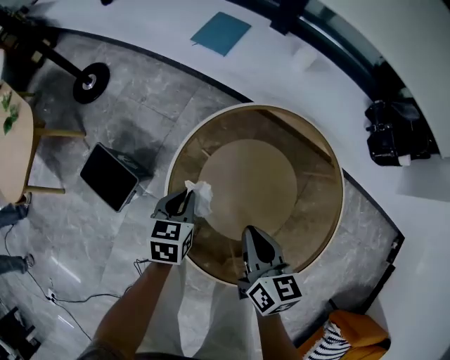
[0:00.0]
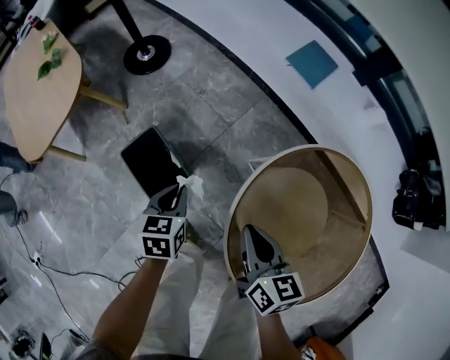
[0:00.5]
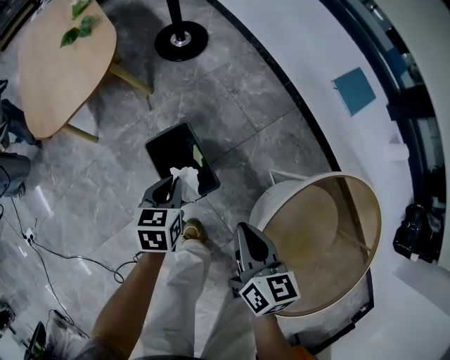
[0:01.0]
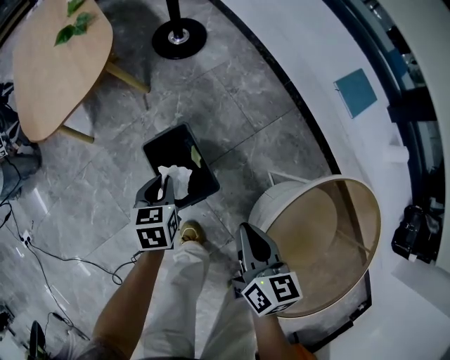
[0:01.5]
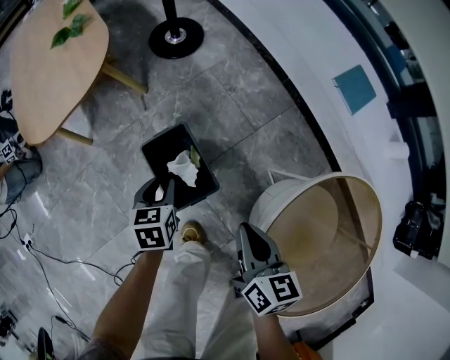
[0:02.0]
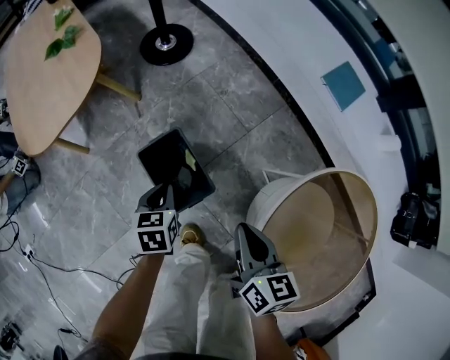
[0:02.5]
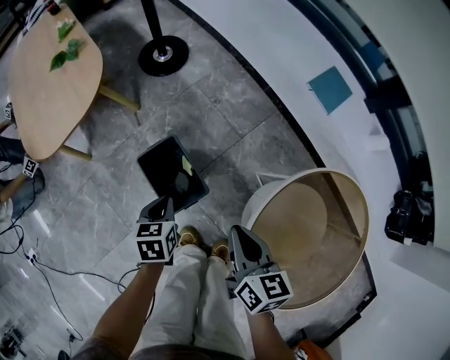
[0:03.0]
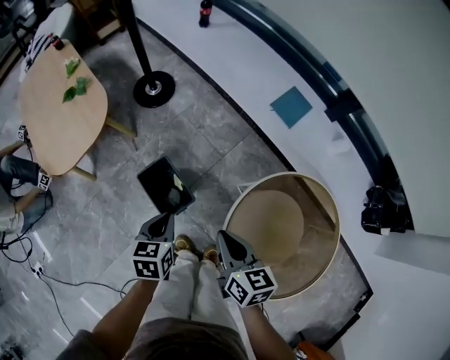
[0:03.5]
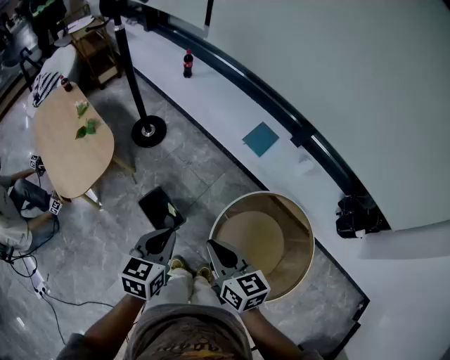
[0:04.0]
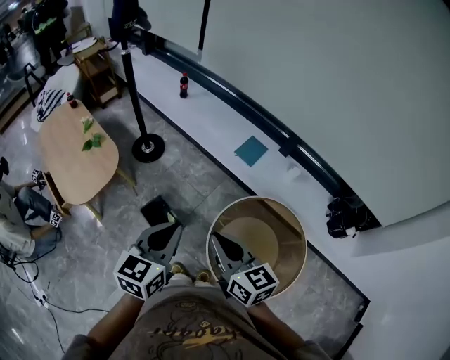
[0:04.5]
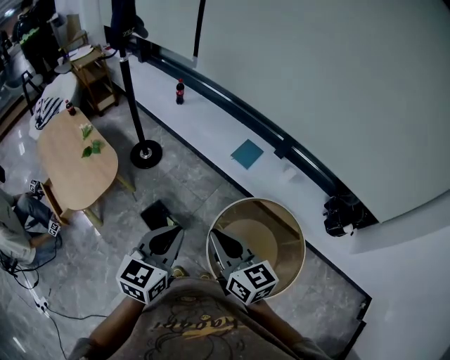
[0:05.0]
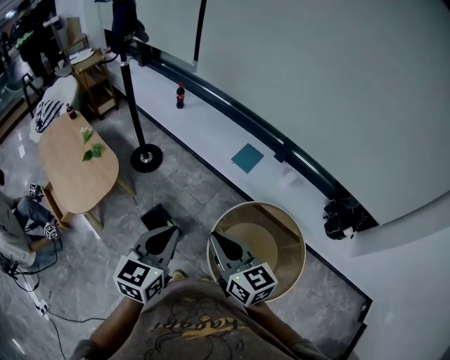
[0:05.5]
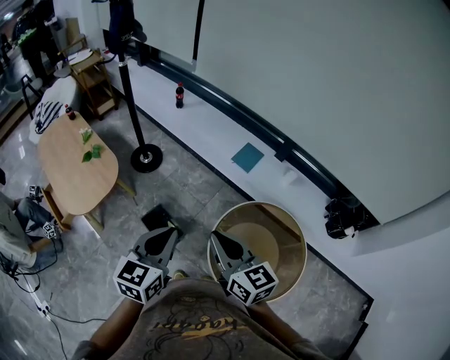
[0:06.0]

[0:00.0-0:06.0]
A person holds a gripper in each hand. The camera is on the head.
0:00.0 to 0:02.0: The left gripper shifts by approximately 40 cm, and rotates roughly 40 degrees. The right gripper shifts by some 35 cm, and turns by roughly 20 degrees.
0:02.0 to 0:04.0: The grippers both shift upward by roughly 40 cm. The left gripper turns by approximately 30 degrees, and closes its fingers.
0:04.0 to 0:06.0: Both grippers travel together upward, some 15 cm.

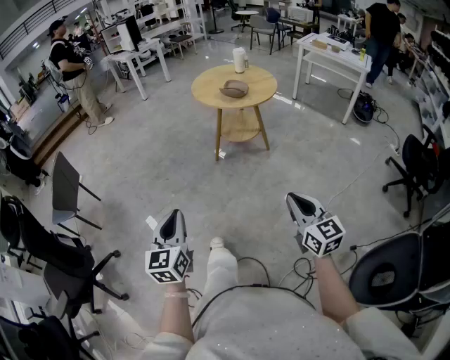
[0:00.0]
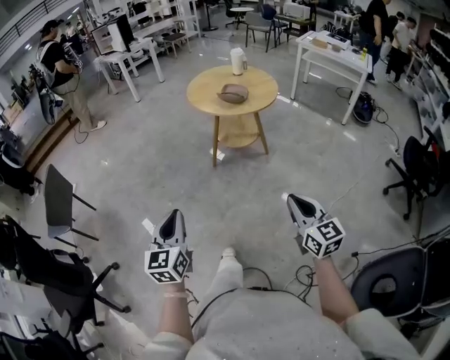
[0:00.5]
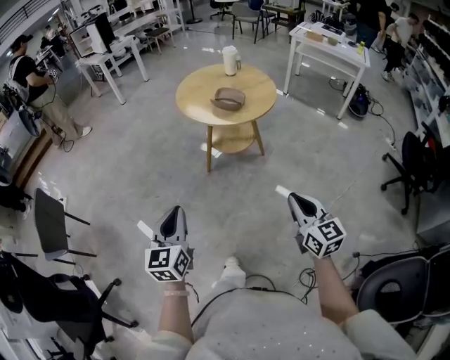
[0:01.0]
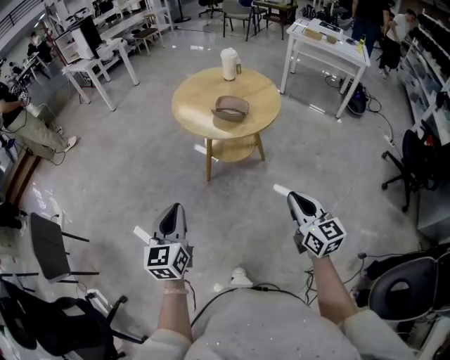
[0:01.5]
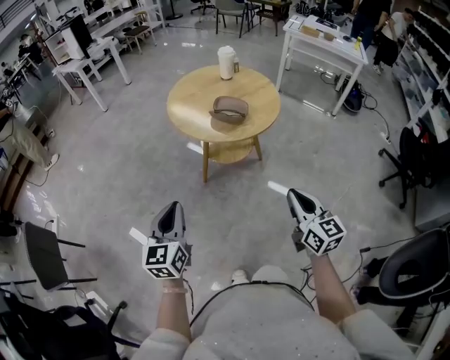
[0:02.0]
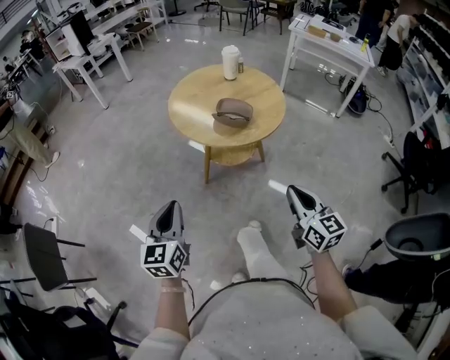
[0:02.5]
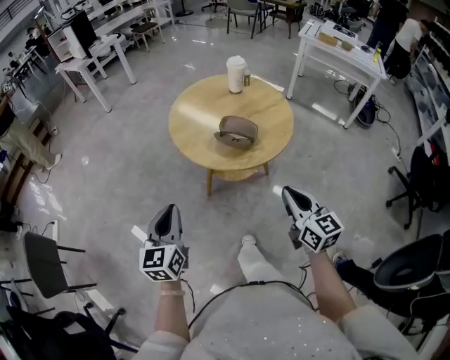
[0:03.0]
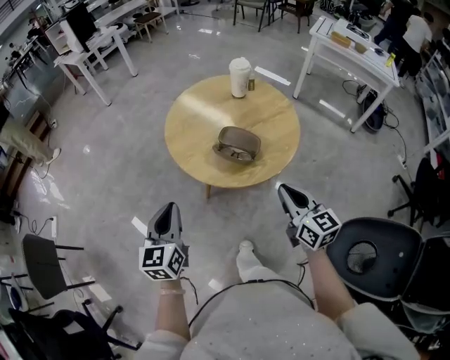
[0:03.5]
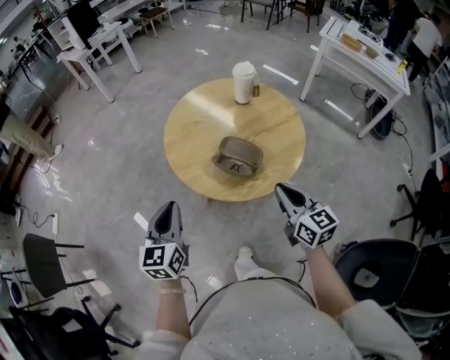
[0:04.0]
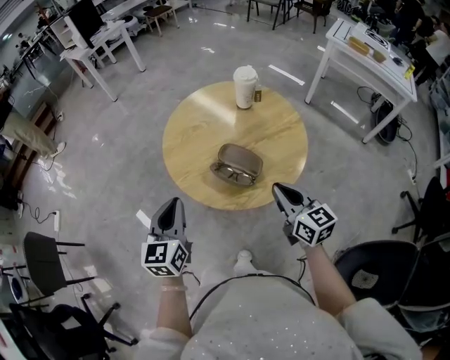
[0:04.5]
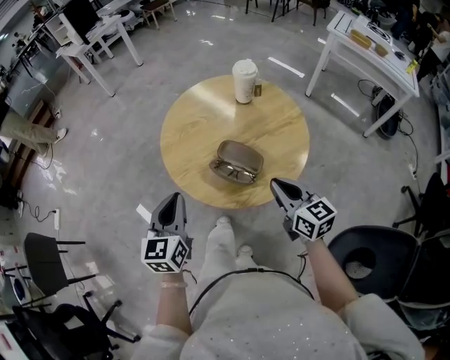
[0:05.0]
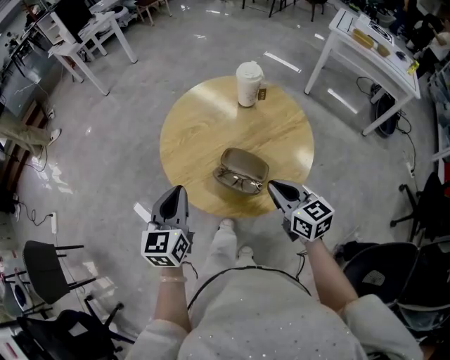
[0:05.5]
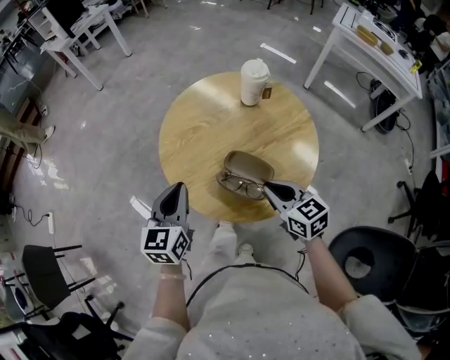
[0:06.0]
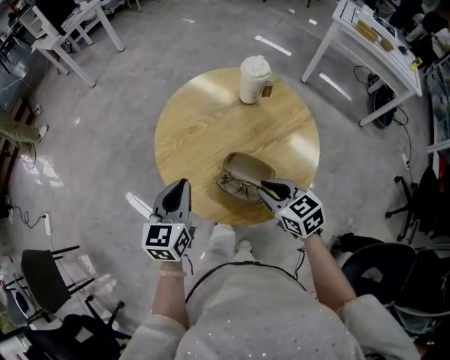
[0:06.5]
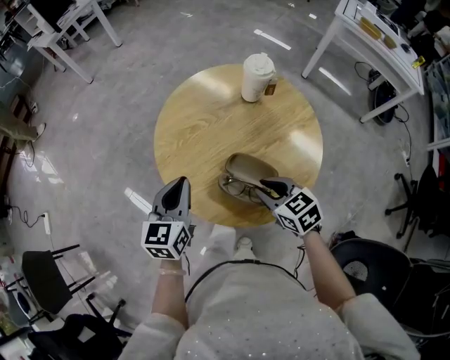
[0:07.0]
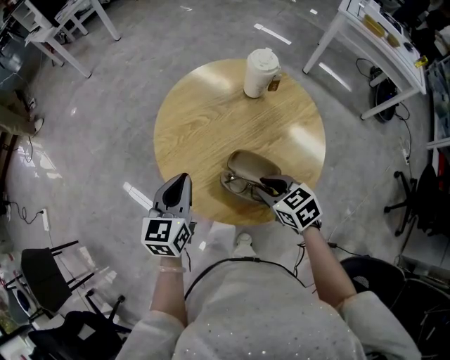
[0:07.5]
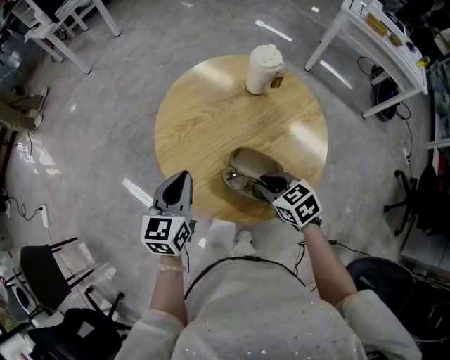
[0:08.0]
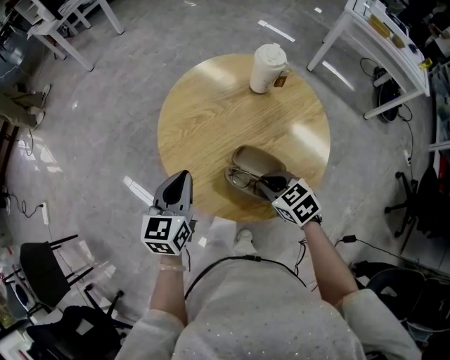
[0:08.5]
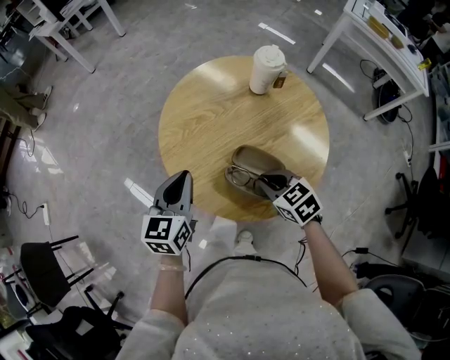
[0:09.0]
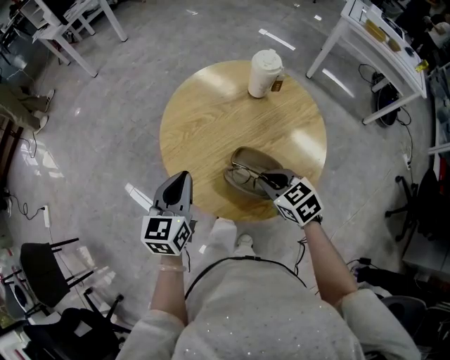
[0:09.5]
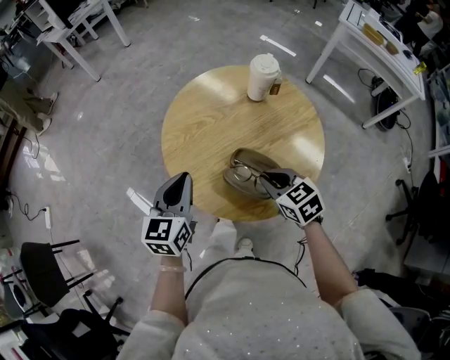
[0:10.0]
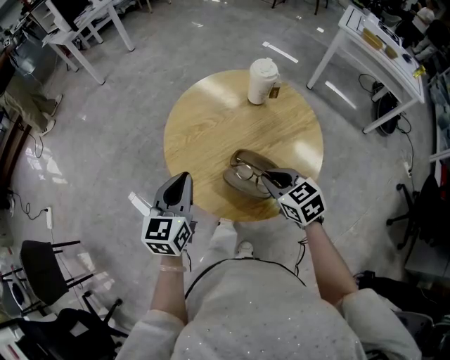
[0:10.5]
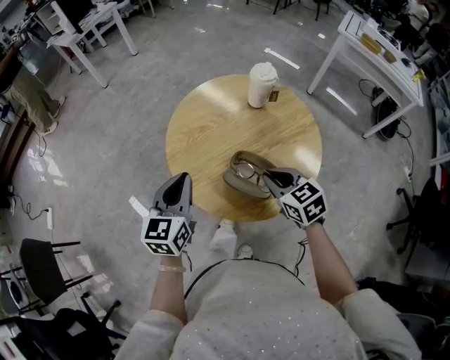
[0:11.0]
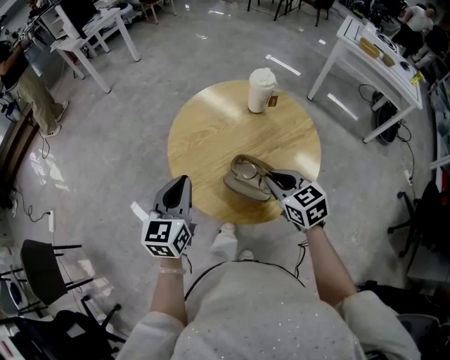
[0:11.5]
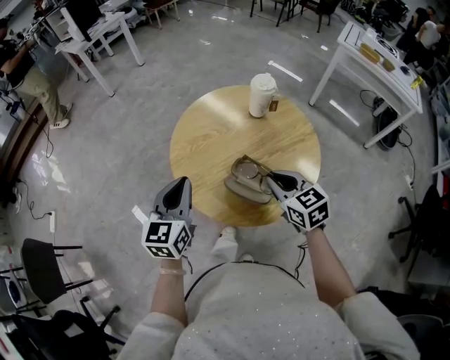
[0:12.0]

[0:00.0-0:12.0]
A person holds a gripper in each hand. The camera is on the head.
0:00.0 to 0:02.0: Both grippers move forward, some 35 cm.
0:02.0 to 0:04.0: Both grippers travel together forward, roughly 30 cm.
0:04.0 to 0:06.0: The right gripper is displaced forward and downward by some 10 cm. Meanwhile the left gripper shifts approximately 15 cm forward.
0:06.0 to 0:08.0: The right gripper heads downward, covering approximately 5 cm, and turns by roughly 20 degrees. Meanwhile the left gripper moves about 5 cm.
0:08.0 to 0:10.0: The grippers stay close to where they were, moving slightly.
0:10.0 to 0:12.0: The right gripper heads upward, covering roughly 5 cm.

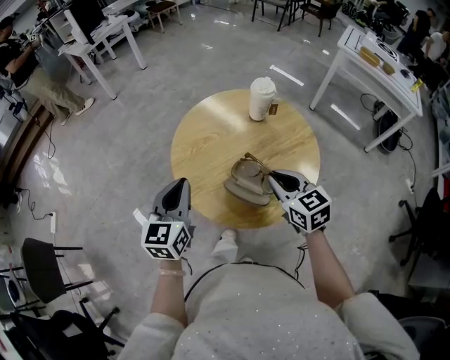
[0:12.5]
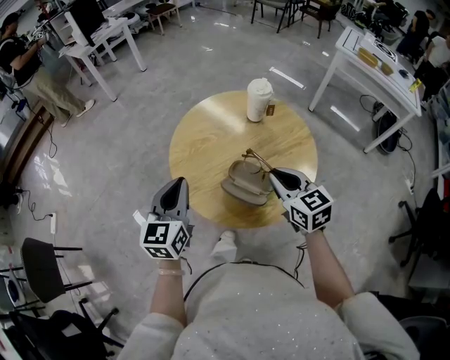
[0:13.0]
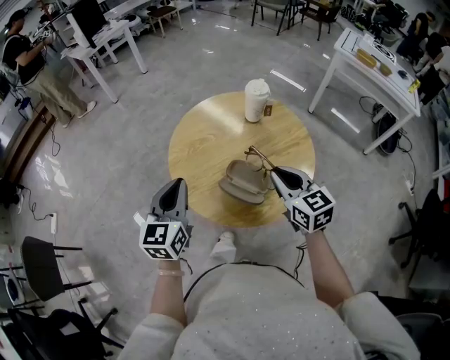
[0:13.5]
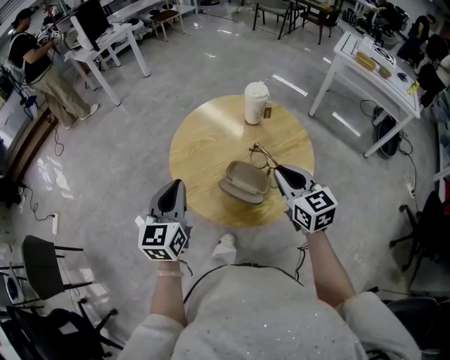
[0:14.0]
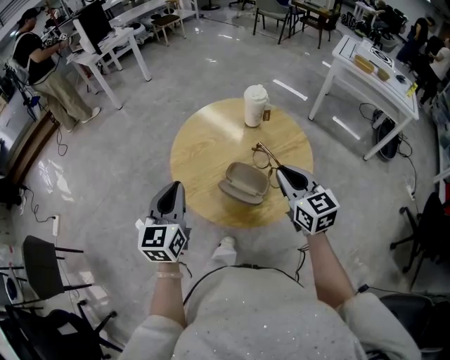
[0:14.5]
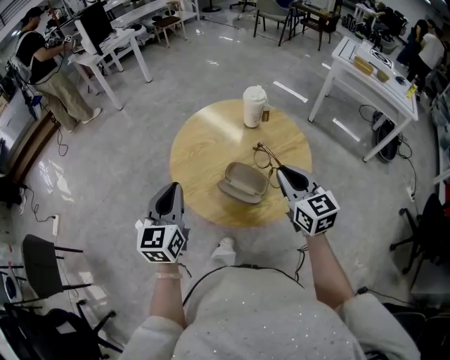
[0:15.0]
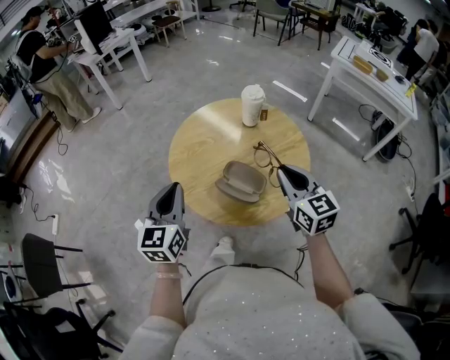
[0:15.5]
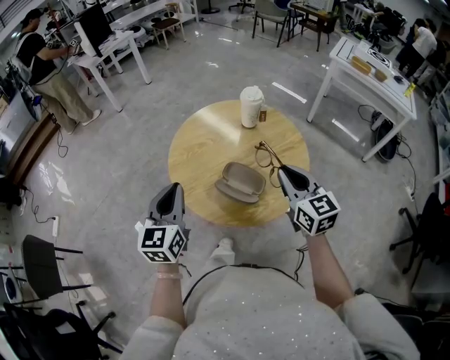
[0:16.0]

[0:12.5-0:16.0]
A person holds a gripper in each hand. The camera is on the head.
0:12.5 to 0:14.5: The right gripper shifts some 5 cm upward.
0:14.5 to 0:16.0: There are only small adjustments of the grippers.

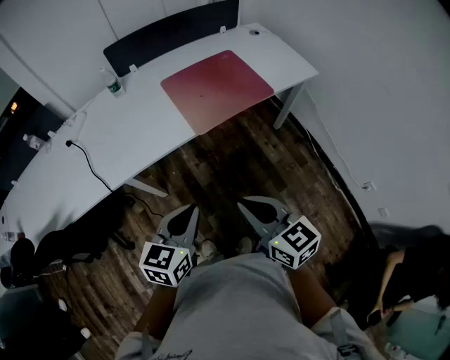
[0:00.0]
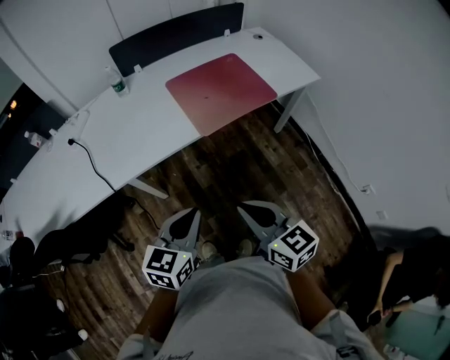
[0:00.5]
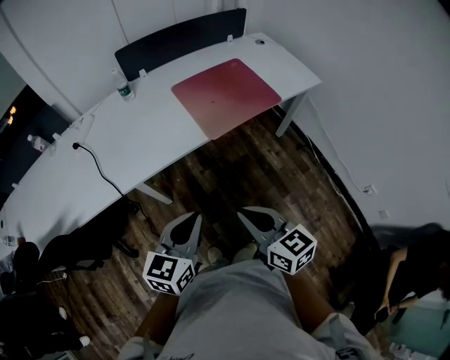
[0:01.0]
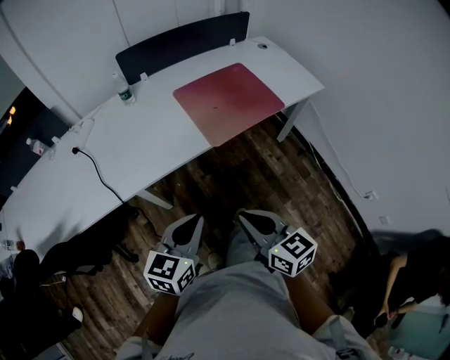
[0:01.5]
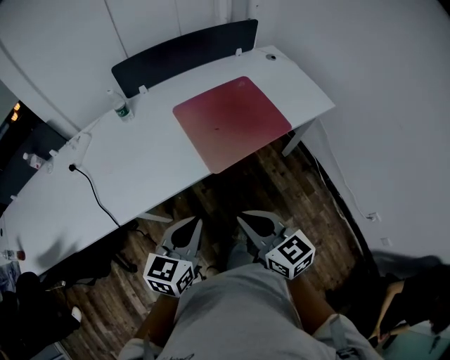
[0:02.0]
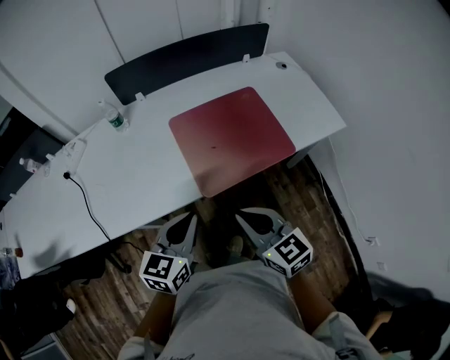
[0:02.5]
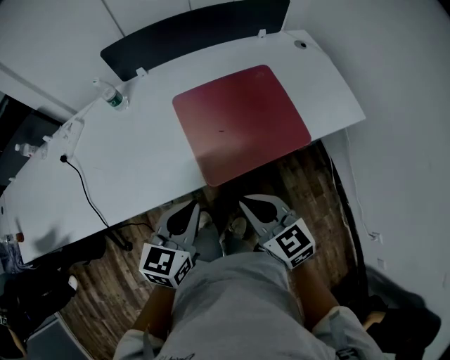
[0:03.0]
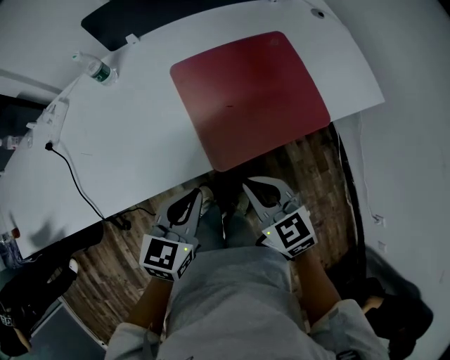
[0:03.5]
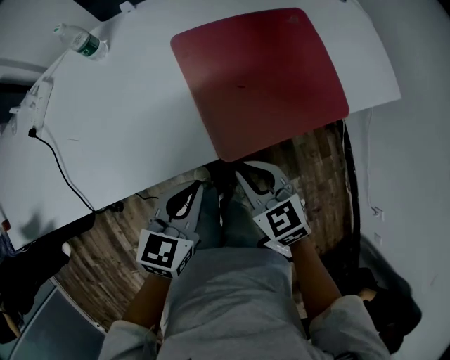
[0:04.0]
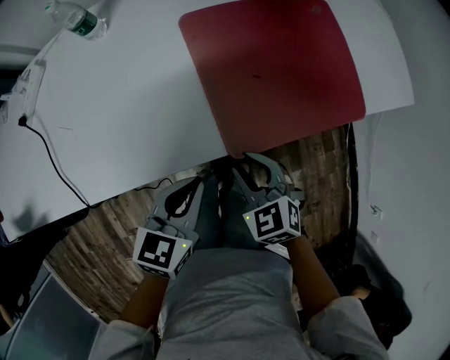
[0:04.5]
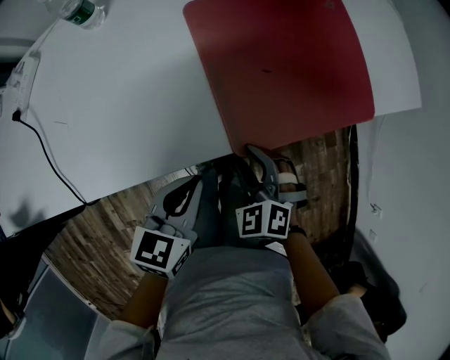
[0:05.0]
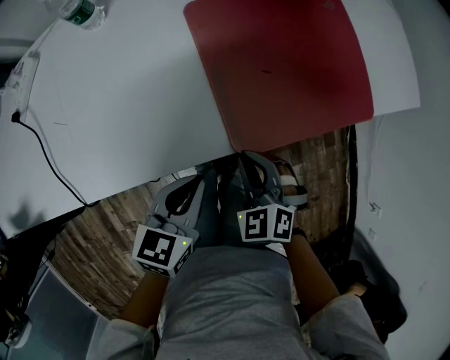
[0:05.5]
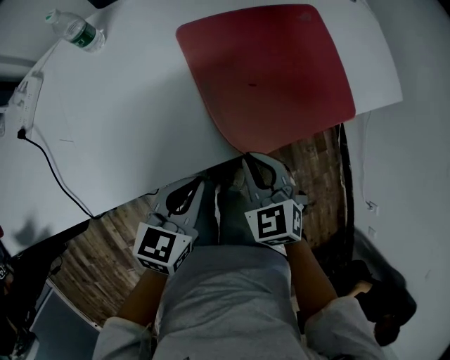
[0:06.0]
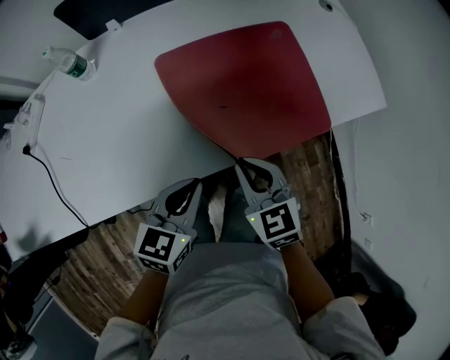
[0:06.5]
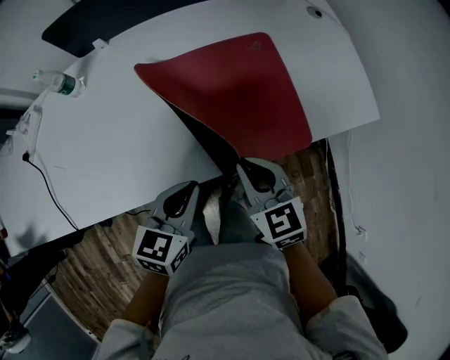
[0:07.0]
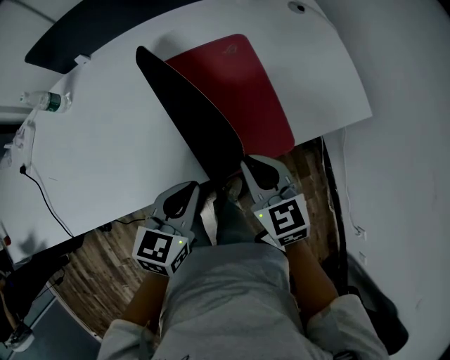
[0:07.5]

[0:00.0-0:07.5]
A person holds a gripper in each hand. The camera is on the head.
0:00.0 to 0:02.0: The two grippers go approximately 10 cm forward.
0:02.0 to 0:04.0: The two grippers go about 25 cm forward and downward. The right gripper changes its angle by approximately 30 degrees.
0:04.0 to 0:05.5: Both grippers move downward, approximately 5 cm. The right gripper changes its angle by some 30 degrees, and opens and closes again.
0:05.5 to 0:07.5: The left gripper goes some 25 cm to the right and forward. The right gripper heads to the right, forward and upward, covering roughly 30 cm, and swivels approximately 40 degrees.
